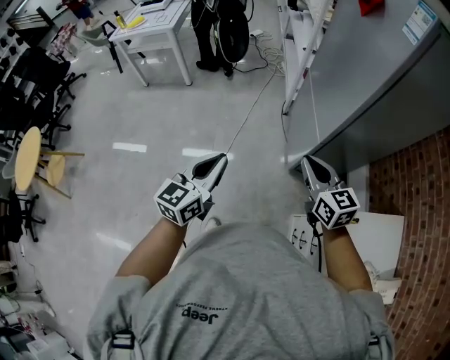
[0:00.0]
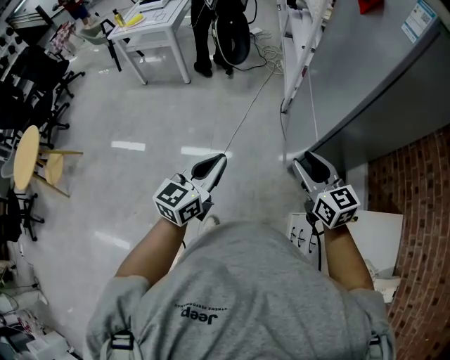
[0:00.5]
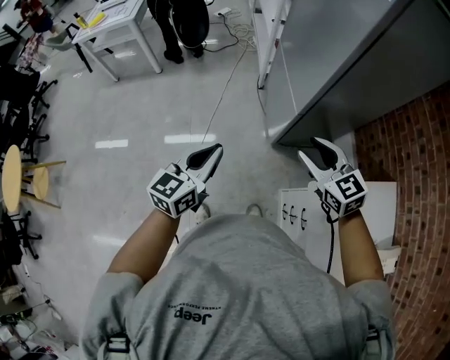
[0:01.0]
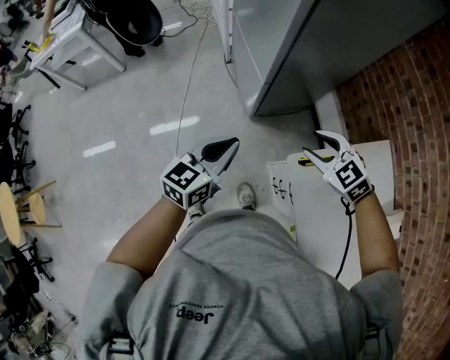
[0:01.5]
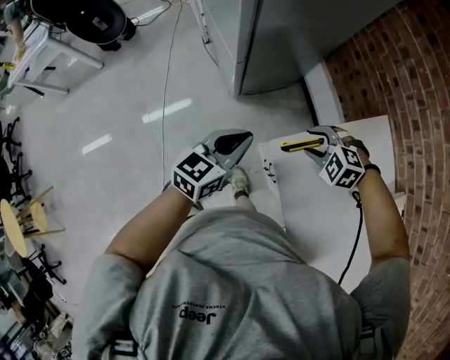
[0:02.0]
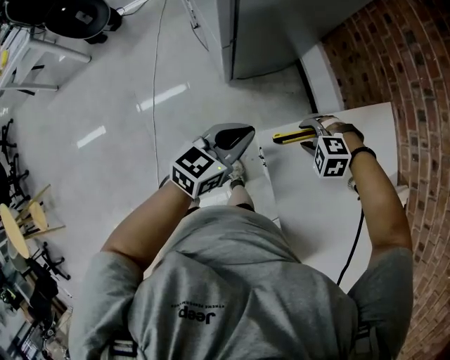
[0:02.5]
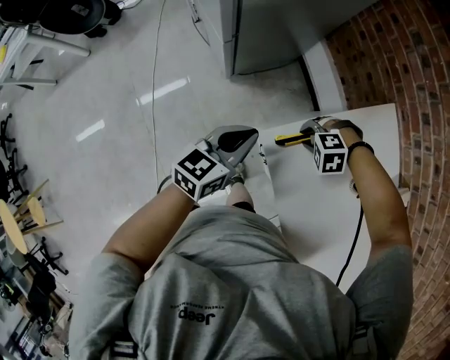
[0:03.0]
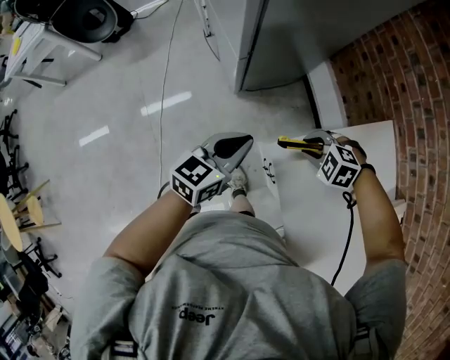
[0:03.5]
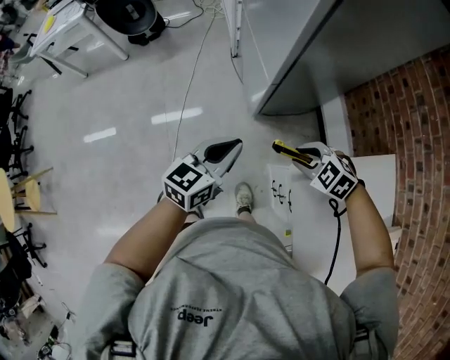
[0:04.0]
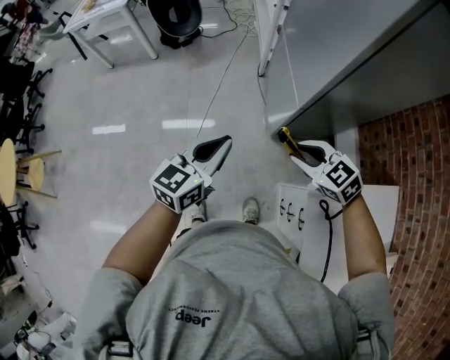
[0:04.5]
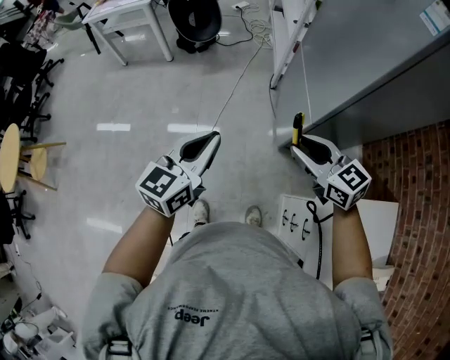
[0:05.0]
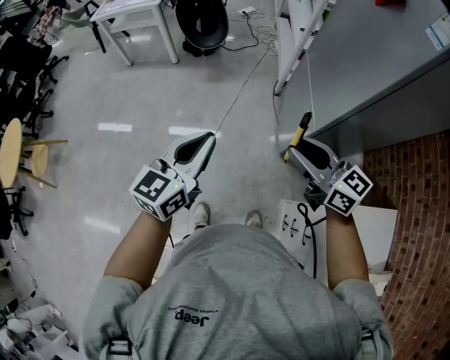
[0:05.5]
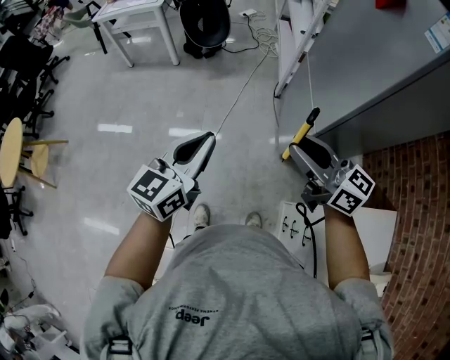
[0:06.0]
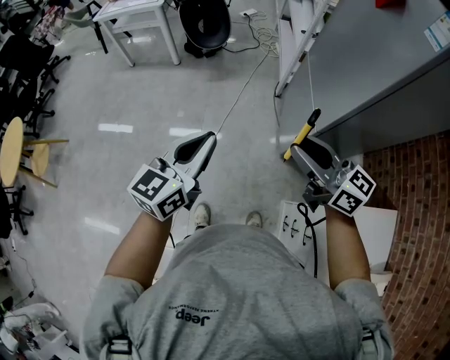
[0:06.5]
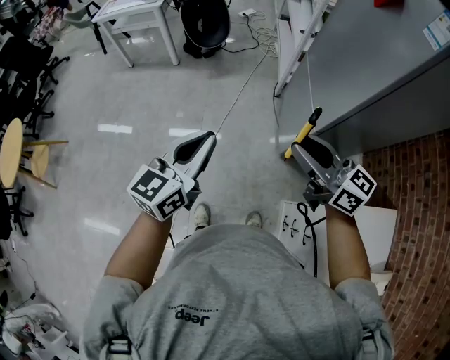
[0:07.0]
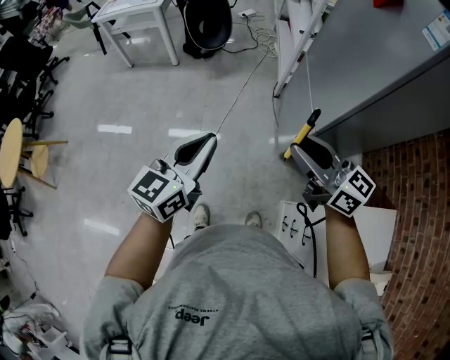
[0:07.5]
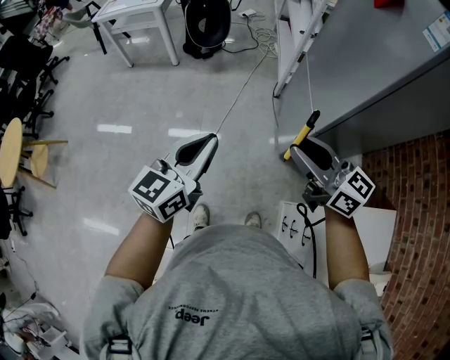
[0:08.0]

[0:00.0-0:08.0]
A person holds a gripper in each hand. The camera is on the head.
0:00.0 to 0:02.0: The right gripper shifts about 40 cm to the right and downward, tilts its fingers roughly 50 degrees downward, and opens up; the left gripper shifts roughly 35 cm to the right, and turns by about 40 degrees.
0:02.0 to 0:04.0: The left gripper goes downward and returns, some 5 cm each way; the right gripper travels downward and back again, approximately 10 cm each way, and closes.
0:04.0 to 0:06.0: The left gripper is displaced to the left and upward by some 30 cm, and swivels roughly 30 degrees. The right gripper moves upward, to the left and forward, approximately 35 cm, and tips its fingers upward by about 60 degrees.
0:06.0 to 0:08.0: Both grippers stay about where they are.

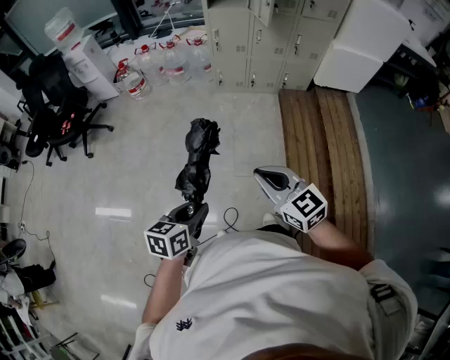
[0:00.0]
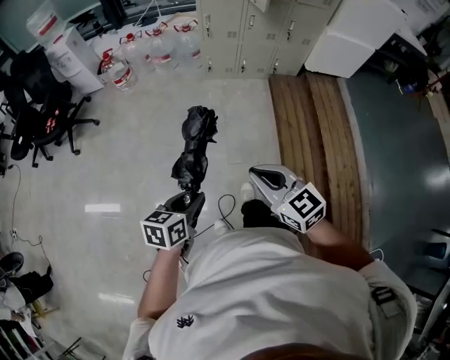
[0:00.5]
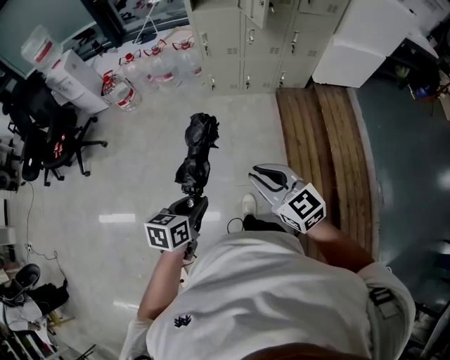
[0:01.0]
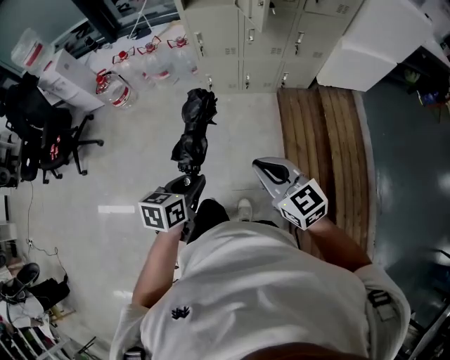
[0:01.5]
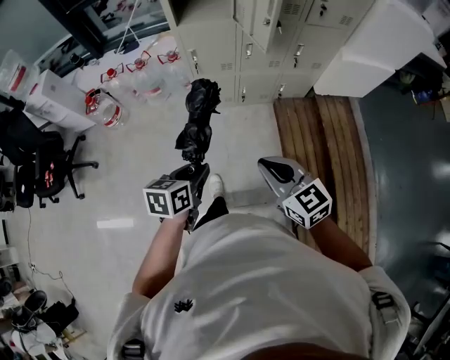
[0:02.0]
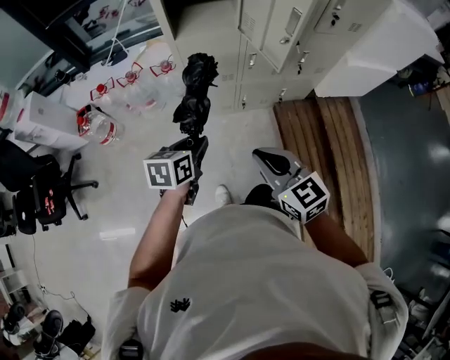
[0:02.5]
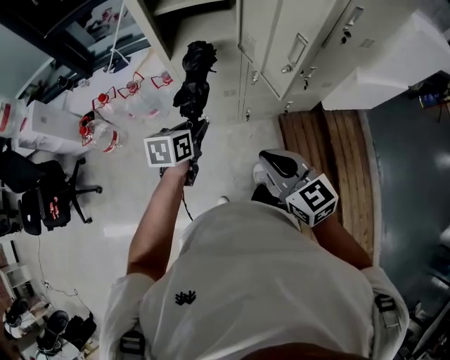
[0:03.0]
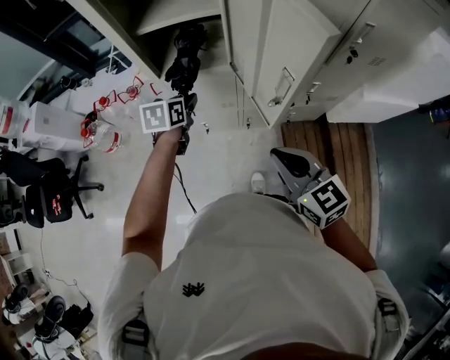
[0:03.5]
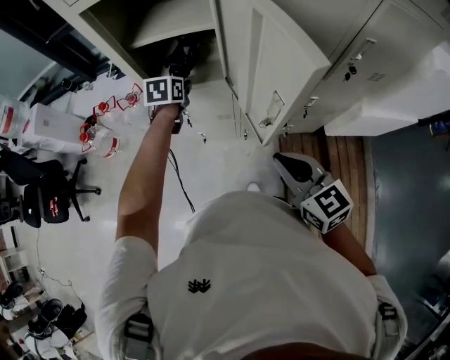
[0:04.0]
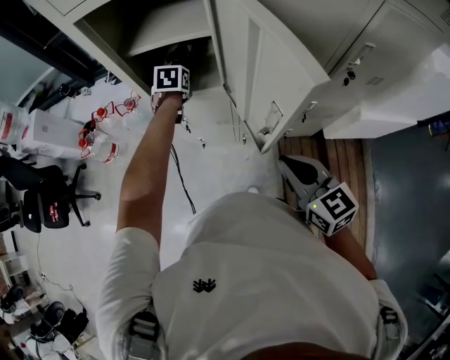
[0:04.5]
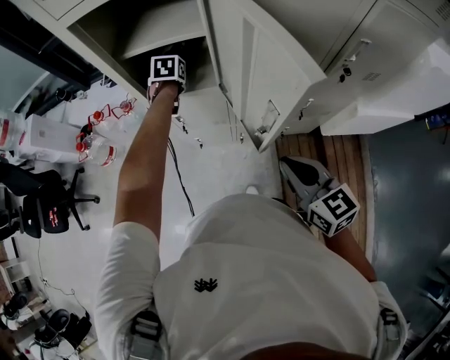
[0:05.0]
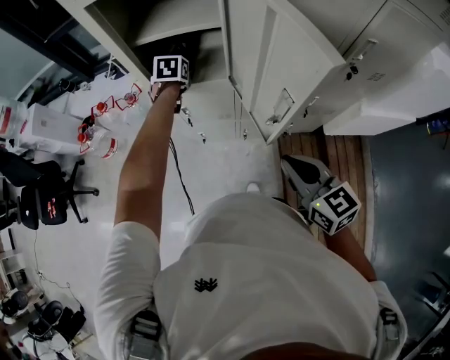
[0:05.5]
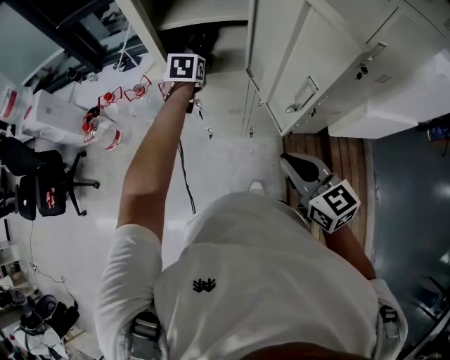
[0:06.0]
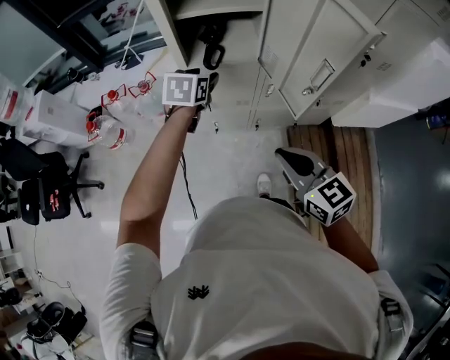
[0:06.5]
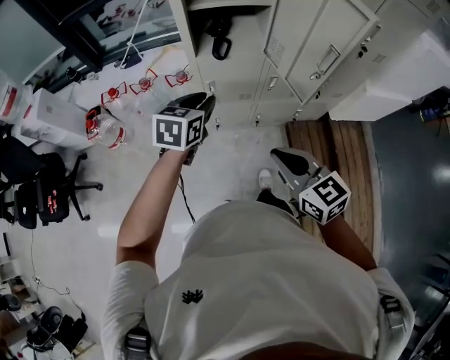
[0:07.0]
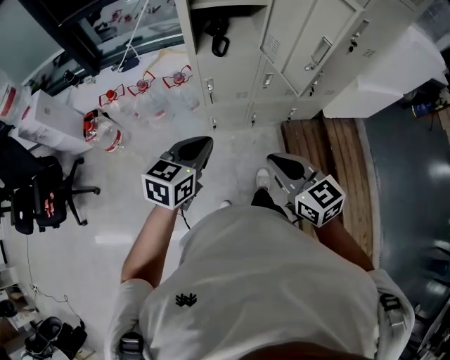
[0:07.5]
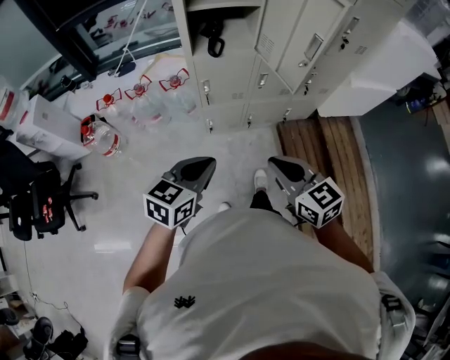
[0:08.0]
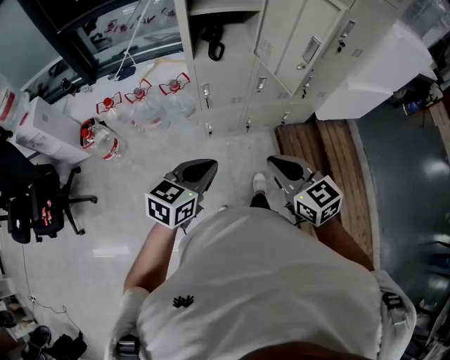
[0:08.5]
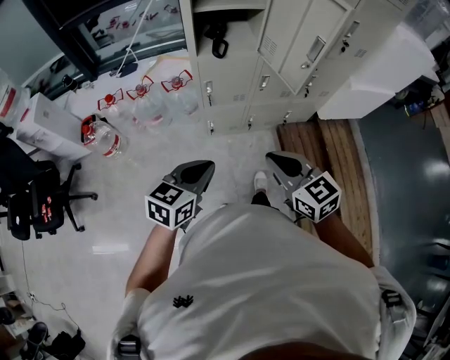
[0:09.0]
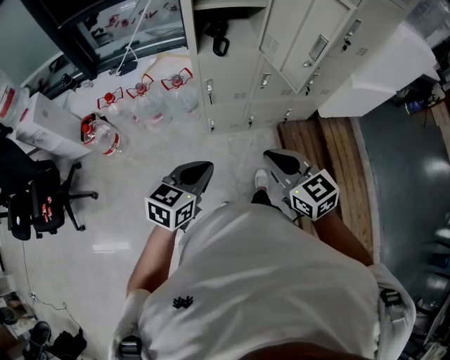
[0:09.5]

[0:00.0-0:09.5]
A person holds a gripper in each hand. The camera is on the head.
0:00.0 to 0:02.0: Both grippers are carried forward, about 50 cm.
0:02.0 to 0:04.0: The left gripper shifts approximately 60 cm forward, and turns by about 20 degrees. Meanwhile the right gripper moves forward, about 35 cm.
0:04.0 to 0:05.5: The left gripper goes approximately 5 cm forward, and opens its fingers.
0:05.5 to 0:07.5: The left gripper moves backward, about 40 cm, changes its angle by roughly 40 degrees, and closes, while the right gripper shifts some 25 cm to the left and backward.
0:07.5 to 0:09.5: The left gripper travels backward by about 10 cm.

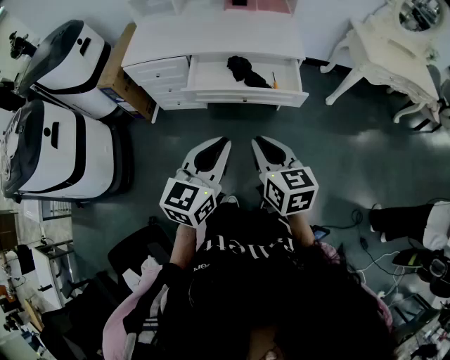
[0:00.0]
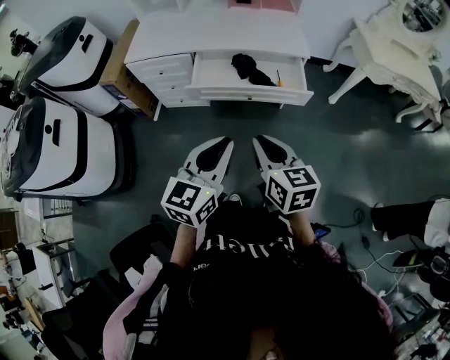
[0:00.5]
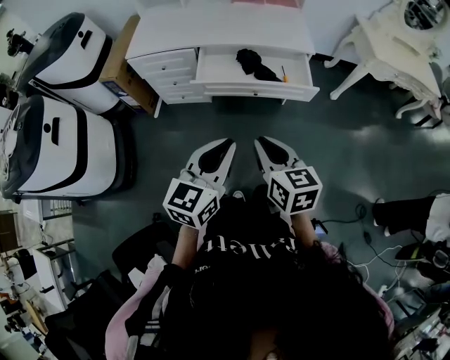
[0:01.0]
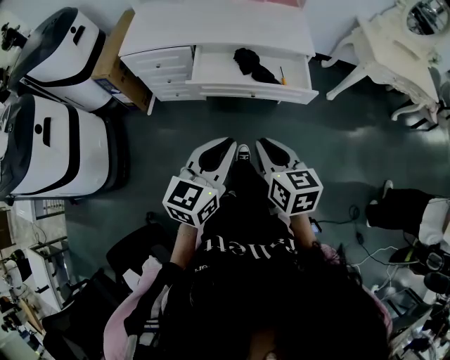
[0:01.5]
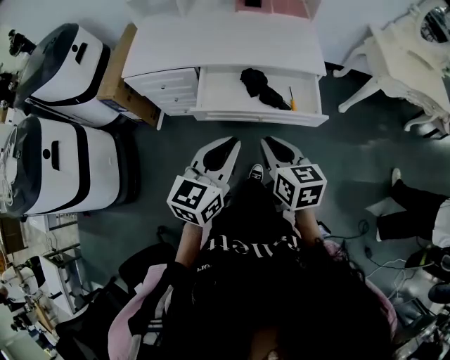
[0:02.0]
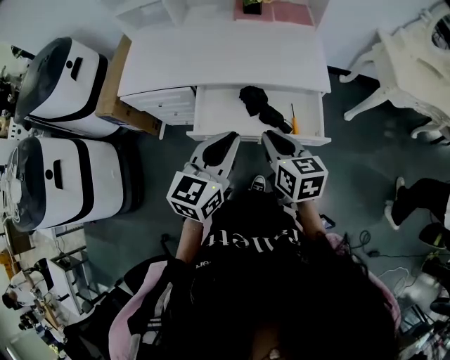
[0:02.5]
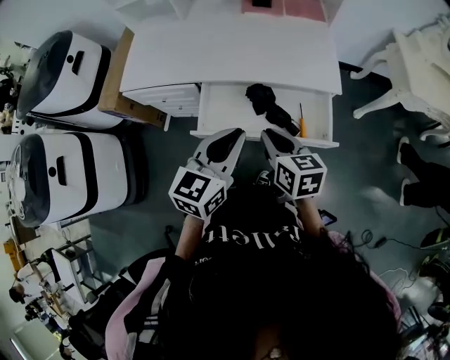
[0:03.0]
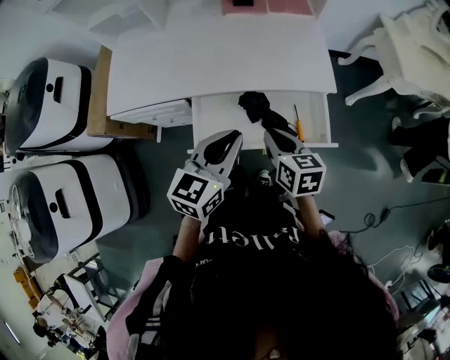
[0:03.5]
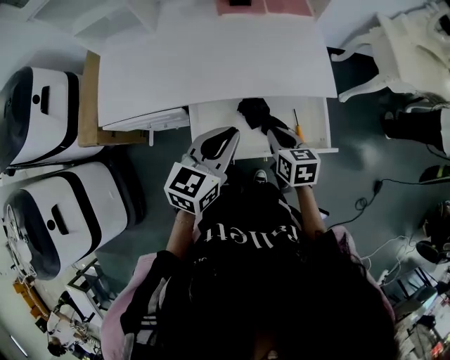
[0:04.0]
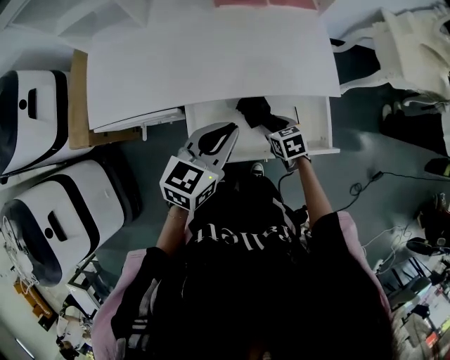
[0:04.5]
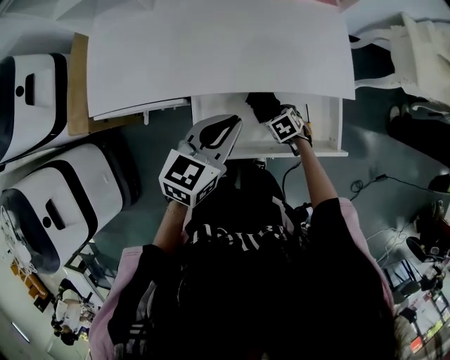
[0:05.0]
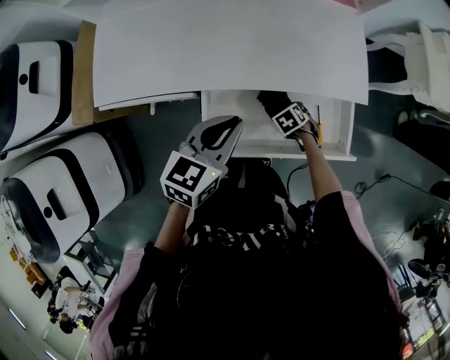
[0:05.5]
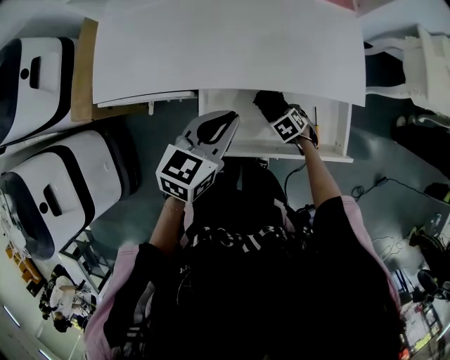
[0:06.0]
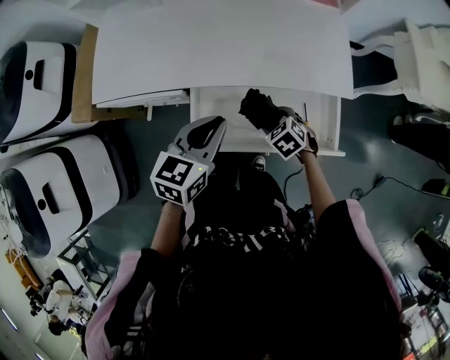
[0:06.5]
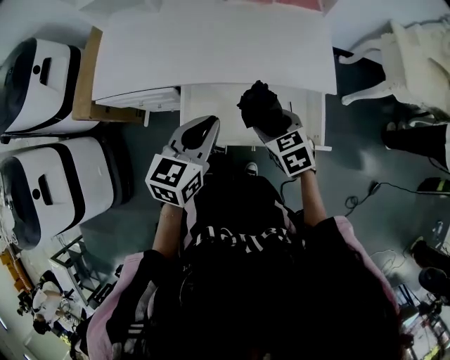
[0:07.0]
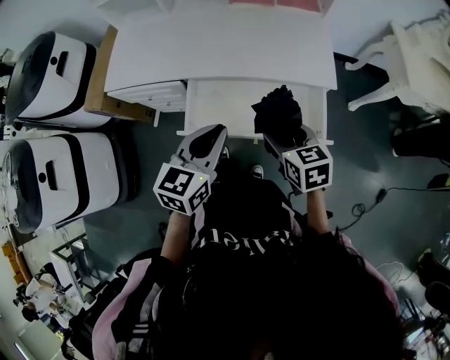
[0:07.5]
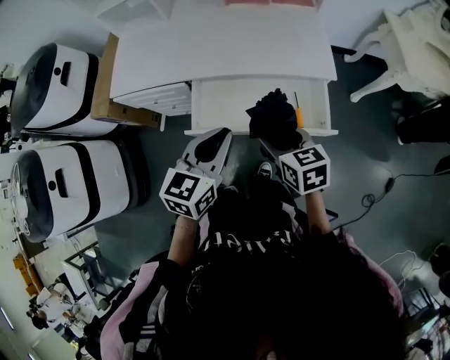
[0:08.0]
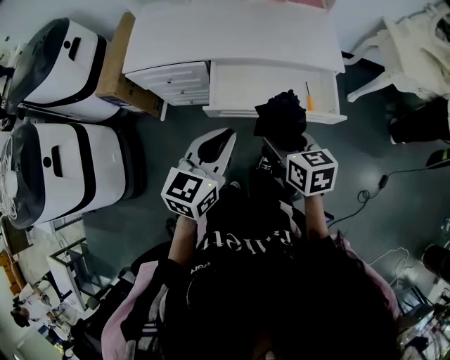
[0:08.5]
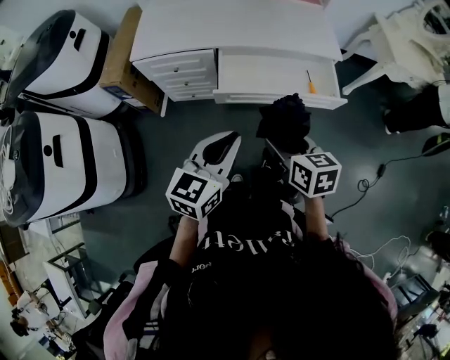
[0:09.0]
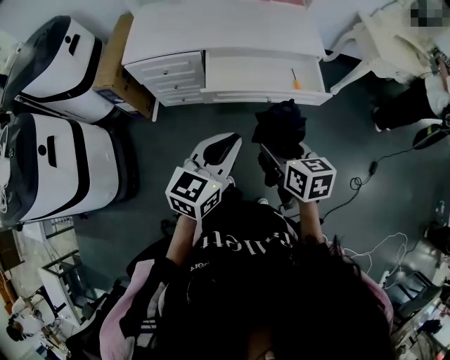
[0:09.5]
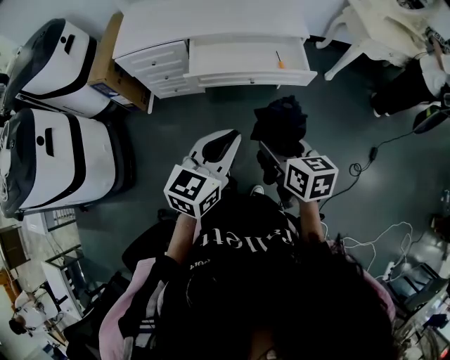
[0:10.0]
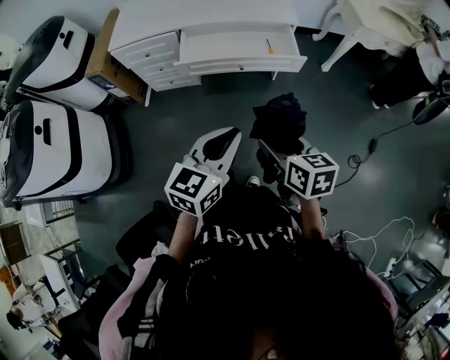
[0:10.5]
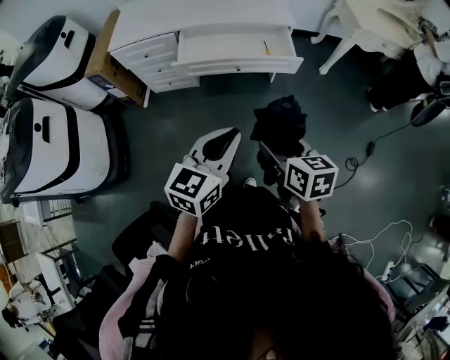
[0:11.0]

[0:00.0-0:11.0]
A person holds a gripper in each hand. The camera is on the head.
0:00.0 to 0:02.0: The grippers both shift forward by about 15 cm.
0:02.0 to 0:03.5: The two grippers go roughly 25 cm forward.
0:03.5 to 0:05.5: The right gripper heads downward, covering about 30 cm, tips its fingers downward by some 50 degrees, and opens up; the left gripper moves some 20 cm.
0:05.5 to 0:07.5: The left gripper shifts by some 20 cm, while the right gripper shifts about 30 cm upward, and points its fingers roughly 40 degrees further upward.
0:07.5 to 0:09.0: The grippers both shift backward and to the left by some 30 cm.
0:09.0 to 0:11.0: The right gripper travels backward and to the right by about 30 cm. Meanwhile the left gripper is displaced to the right and backward by approximately 30 cm.
